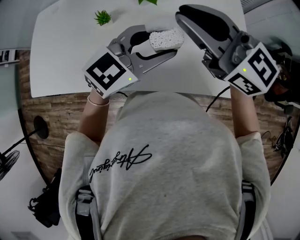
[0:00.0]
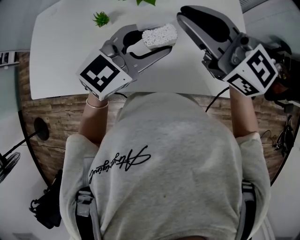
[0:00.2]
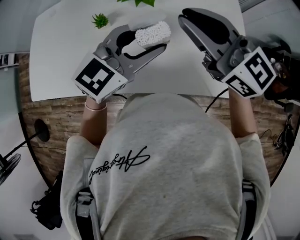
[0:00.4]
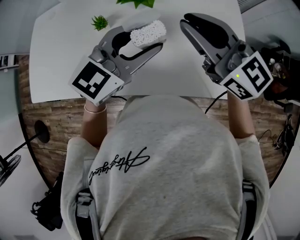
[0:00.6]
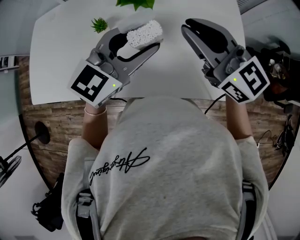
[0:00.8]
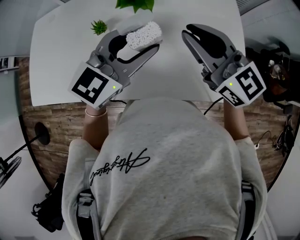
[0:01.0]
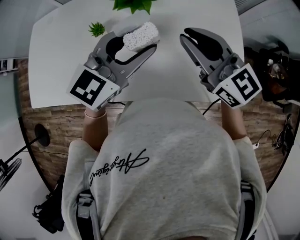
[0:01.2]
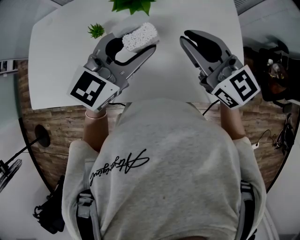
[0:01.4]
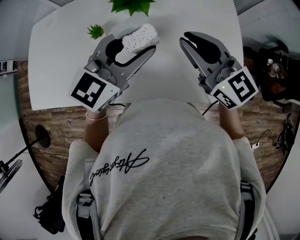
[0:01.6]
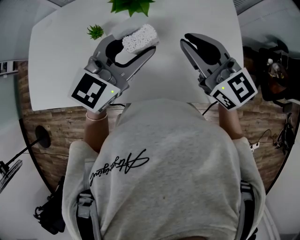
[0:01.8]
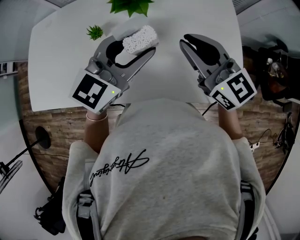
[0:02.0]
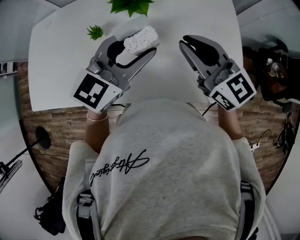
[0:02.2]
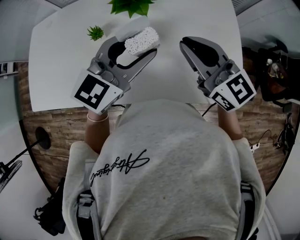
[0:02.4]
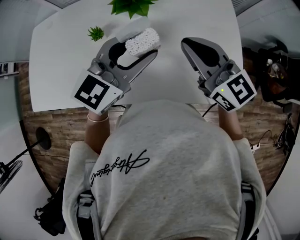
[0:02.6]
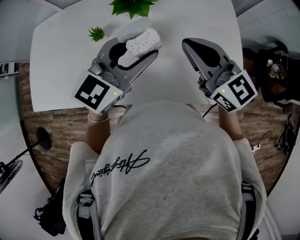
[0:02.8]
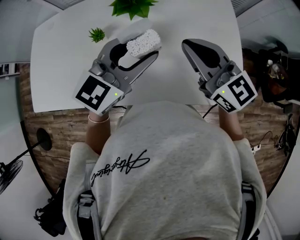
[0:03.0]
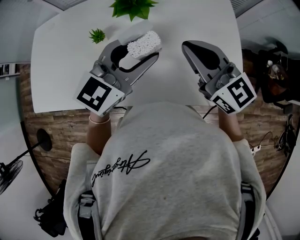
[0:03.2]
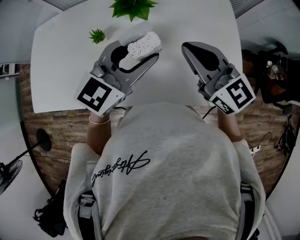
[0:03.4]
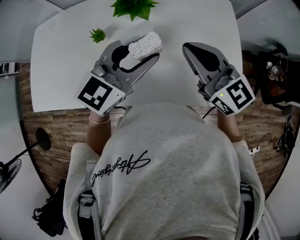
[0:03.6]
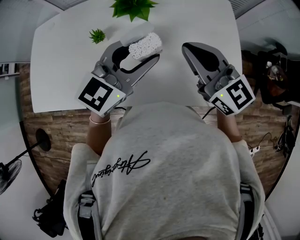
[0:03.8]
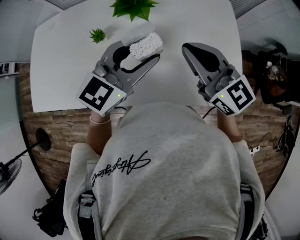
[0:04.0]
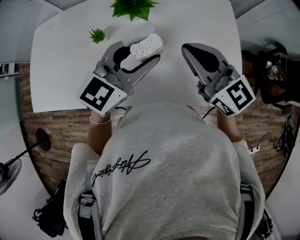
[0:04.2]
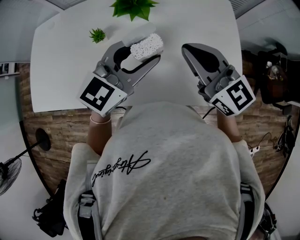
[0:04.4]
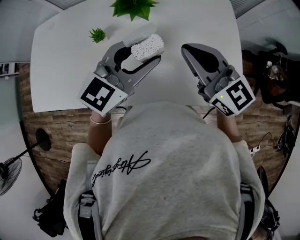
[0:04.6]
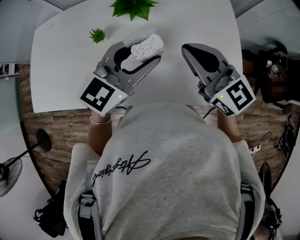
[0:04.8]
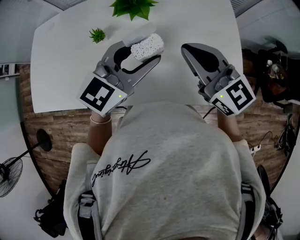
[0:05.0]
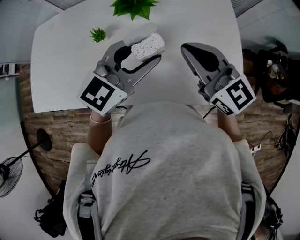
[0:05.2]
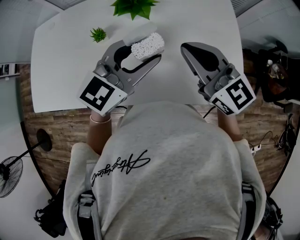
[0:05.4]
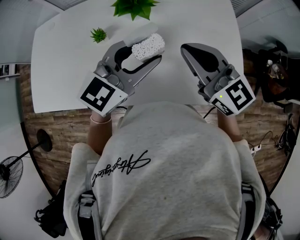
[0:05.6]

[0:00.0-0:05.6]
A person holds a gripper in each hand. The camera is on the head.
0:00.0 to 0:01.4: The left gripper ends up approximately 5 cm from where it was. Meanwhile the right gripper heads downward, covering some 5 cm.
0:01.4 to 0:04.2: The two grippers keep their place.
0:04.2 to 0:05.6: The two grippers keep their place.

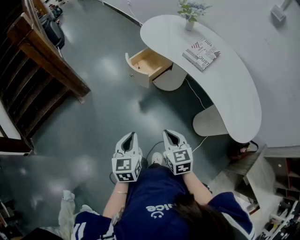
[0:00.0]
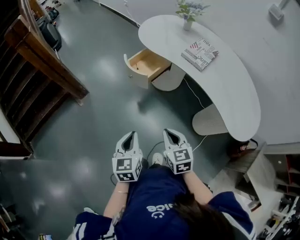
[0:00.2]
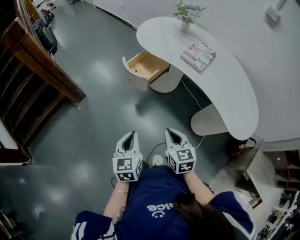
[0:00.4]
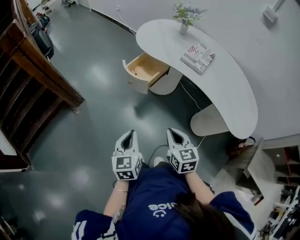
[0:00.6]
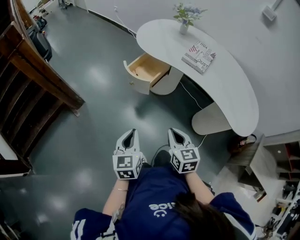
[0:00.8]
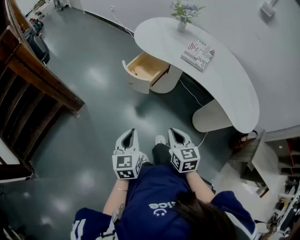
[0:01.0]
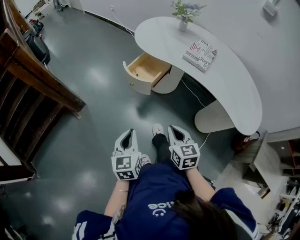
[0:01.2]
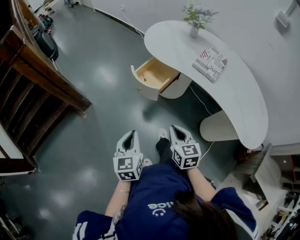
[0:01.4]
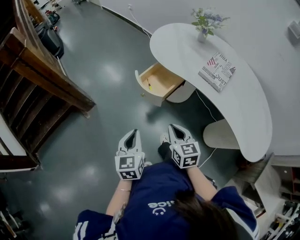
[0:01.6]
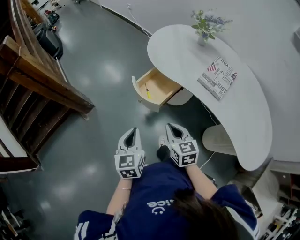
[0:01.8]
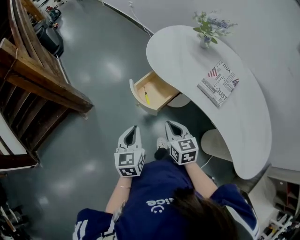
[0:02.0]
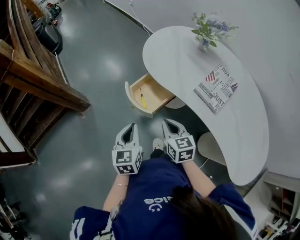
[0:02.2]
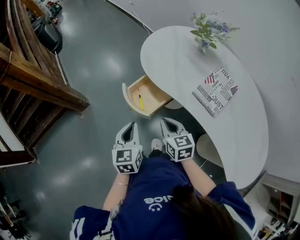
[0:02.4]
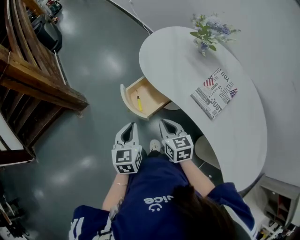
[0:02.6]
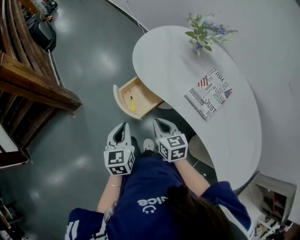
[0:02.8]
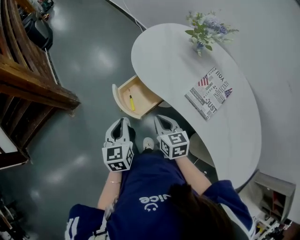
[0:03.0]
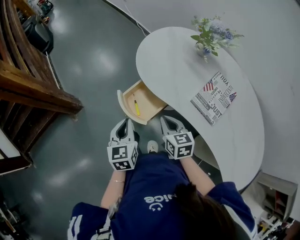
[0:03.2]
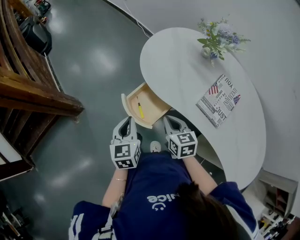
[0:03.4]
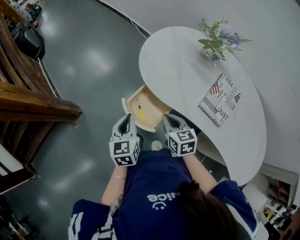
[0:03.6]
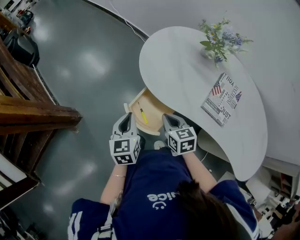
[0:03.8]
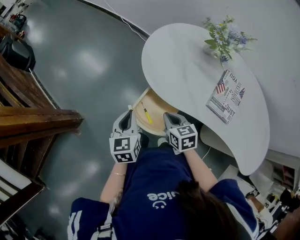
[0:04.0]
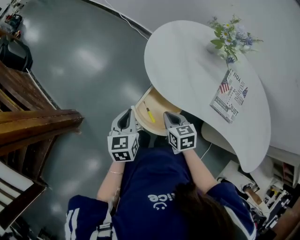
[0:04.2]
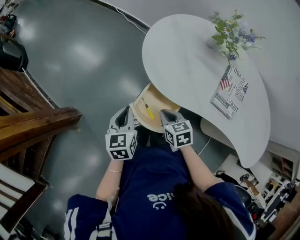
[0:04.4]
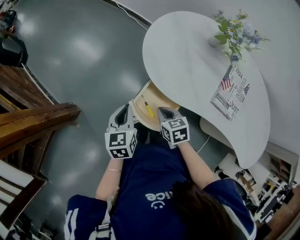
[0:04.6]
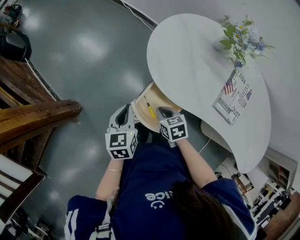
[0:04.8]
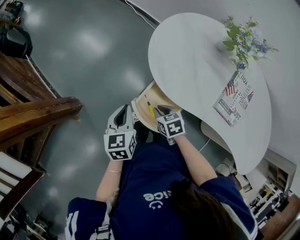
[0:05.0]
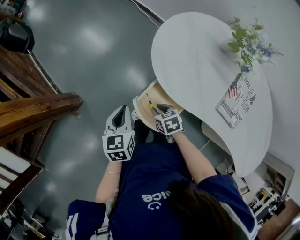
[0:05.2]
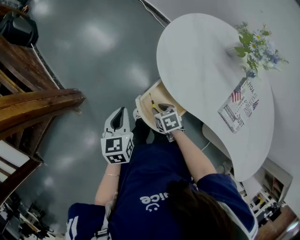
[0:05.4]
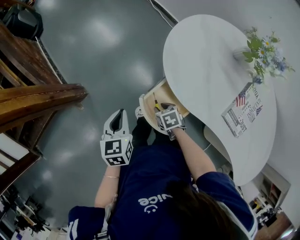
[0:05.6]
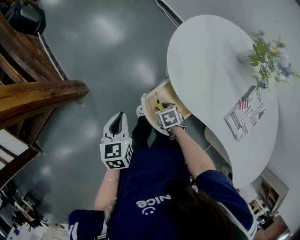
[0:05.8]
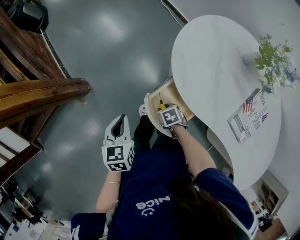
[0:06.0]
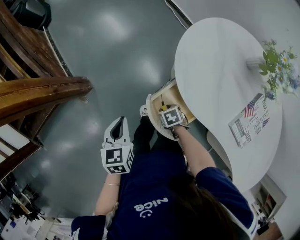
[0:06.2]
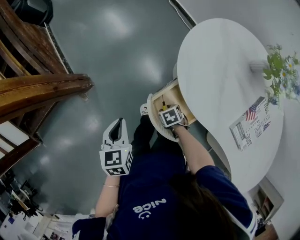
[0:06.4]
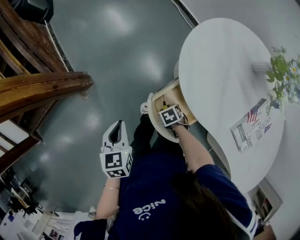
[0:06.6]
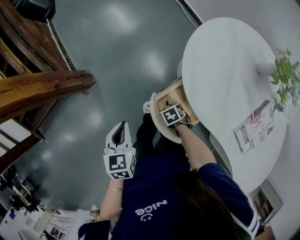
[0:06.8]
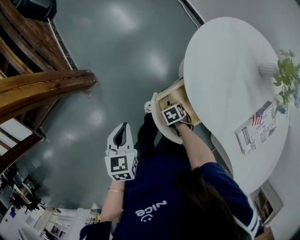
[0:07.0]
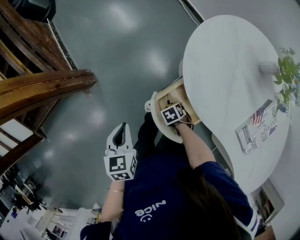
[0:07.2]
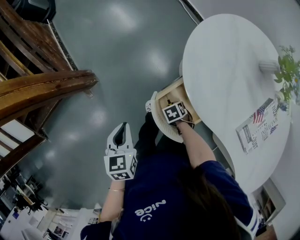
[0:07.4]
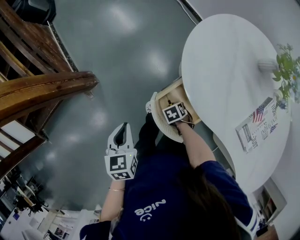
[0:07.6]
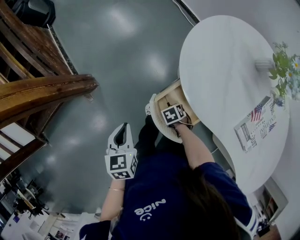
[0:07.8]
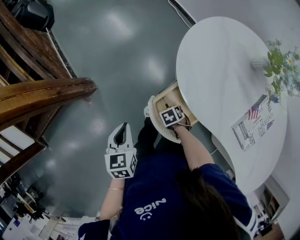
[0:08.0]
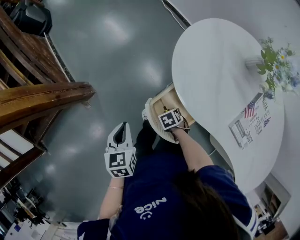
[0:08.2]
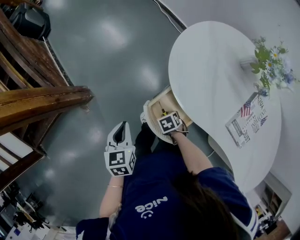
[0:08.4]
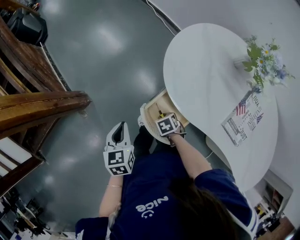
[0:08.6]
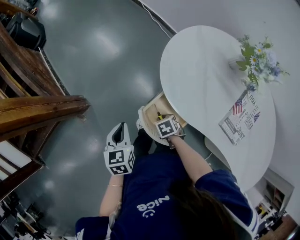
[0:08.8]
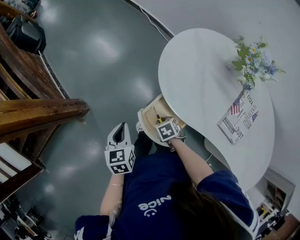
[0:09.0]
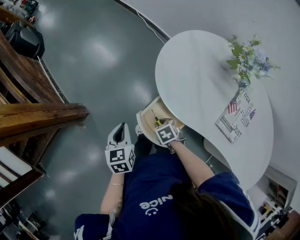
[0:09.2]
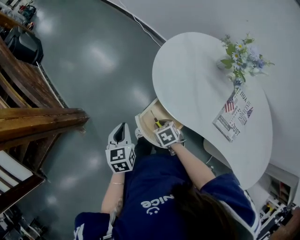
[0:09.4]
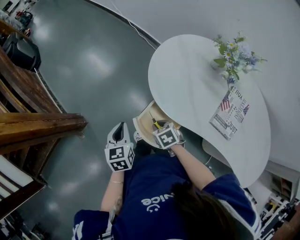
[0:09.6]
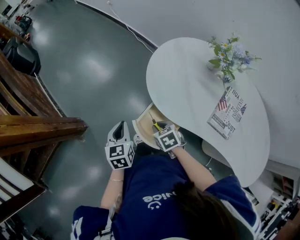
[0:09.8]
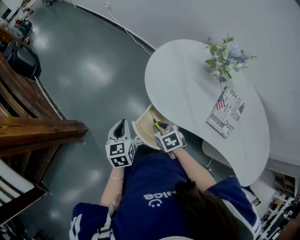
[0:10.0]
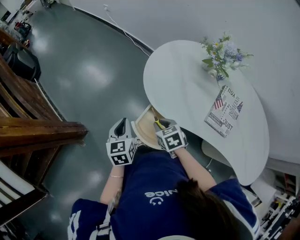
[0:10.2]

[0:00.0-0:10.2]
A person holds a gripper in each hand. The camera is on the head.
0:00.0 to 0:01.4: Both grippers travel together forward and to the left, roughly 15 cm.
0:01.4 to 0:03.0: The right gripper shifts approximately 25 cm forward, while the left gripper goes approximately 25 cm forward and to the right.
0:03.0 to 0:04.4: The left gripper is displaced forward and to the left by roughly 20 cm, and rotates some 20 degrees. Meanwhile the right gripper moves forward, to the left and downward, some 20 cm, and turns by about 20 degrees.
0:04.4 to 0:05.8: The right gripper goes some 15 cm downward, changes its angle by roughly 30 degrees, and opens, while the left gripper changes place by approximately 5 cm.
0:05.8 to 0:07.2: The right gripper is displaced downward by approximately 10 cm.
0:07.2 to 0:08.8: The right gripper shifts roughly 10 cm upward.
0:08.8 to 0:10.2: The right gripper shifts approximately 15 cm upward, and rotates about 20 degrees. Meanwhile the left gripper heads to the right, covering roughly 5 cm.

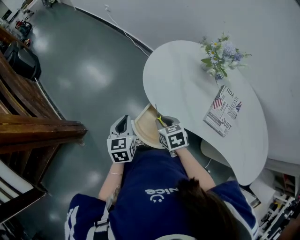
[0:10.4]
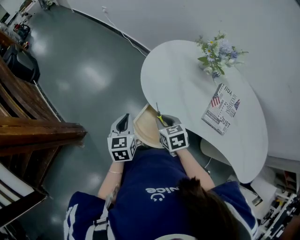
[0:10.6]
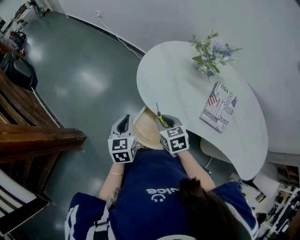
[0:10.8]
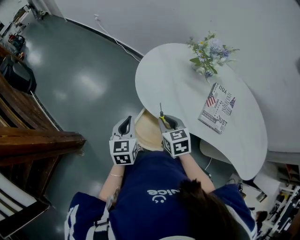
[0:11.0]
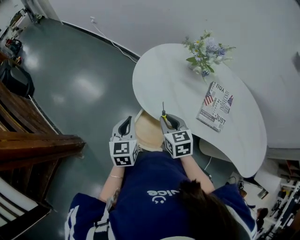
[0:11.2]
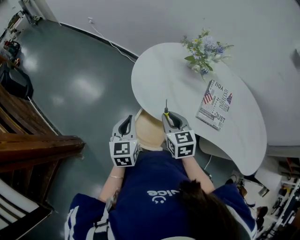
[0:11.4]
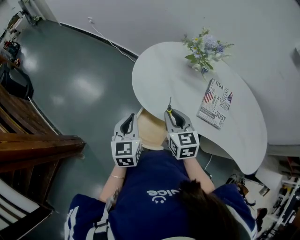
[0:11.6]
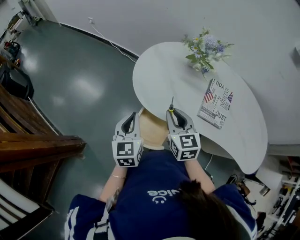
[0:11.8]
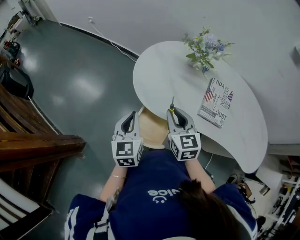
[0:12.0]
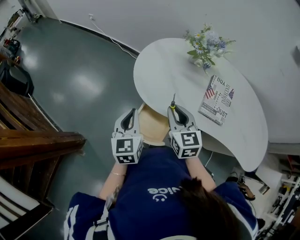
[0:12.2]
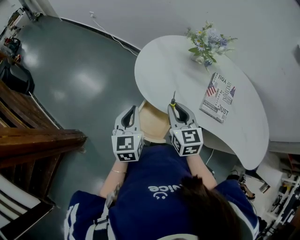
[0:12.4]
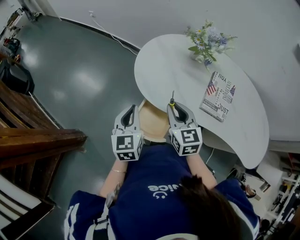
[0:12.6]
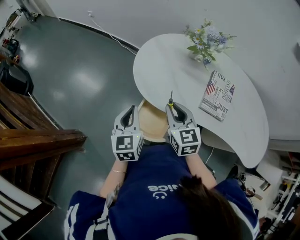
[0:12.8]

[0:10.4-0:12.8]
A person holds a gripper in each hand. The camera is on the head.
0:10.4 to 0:11.6: The right gripper moves upward and to the right, some 10 cm, and changes its angle by approximately 30 degrees. The left gripper goes some 10 cm to the right and upward.
0:11.6 to 0:12.8: There are only small adjustments of the grippers.

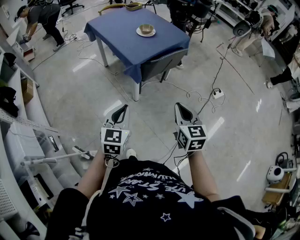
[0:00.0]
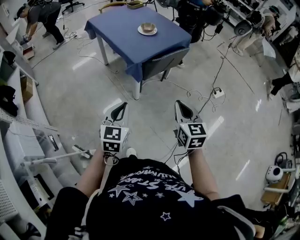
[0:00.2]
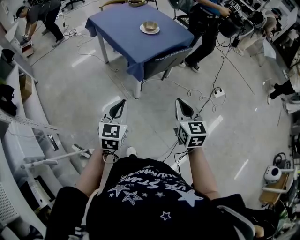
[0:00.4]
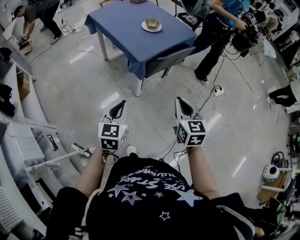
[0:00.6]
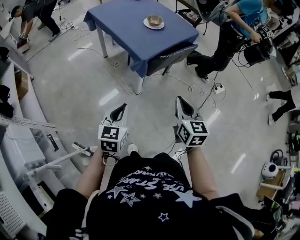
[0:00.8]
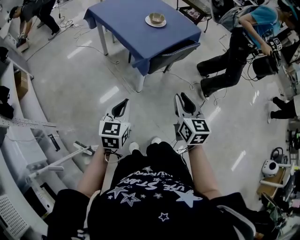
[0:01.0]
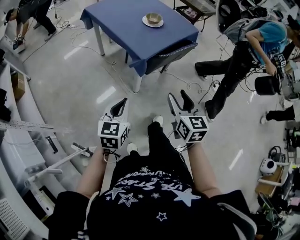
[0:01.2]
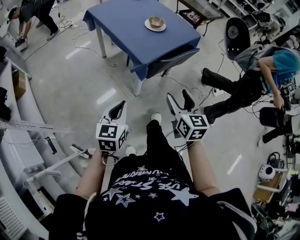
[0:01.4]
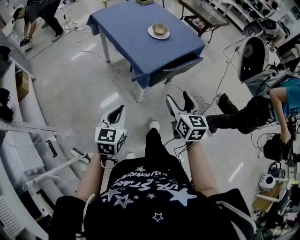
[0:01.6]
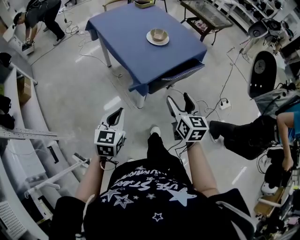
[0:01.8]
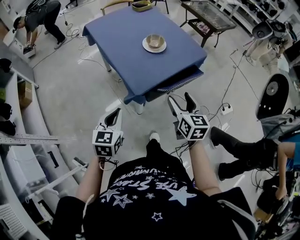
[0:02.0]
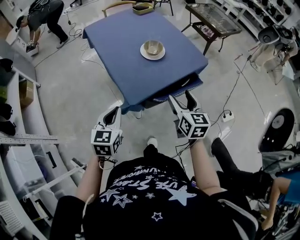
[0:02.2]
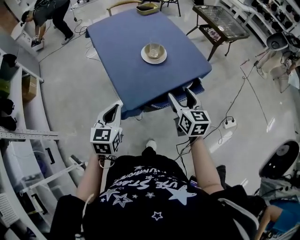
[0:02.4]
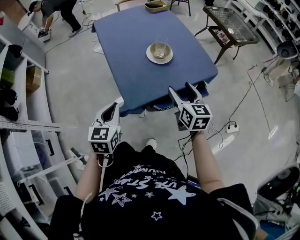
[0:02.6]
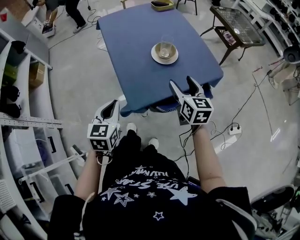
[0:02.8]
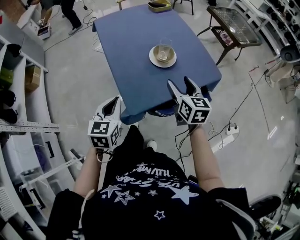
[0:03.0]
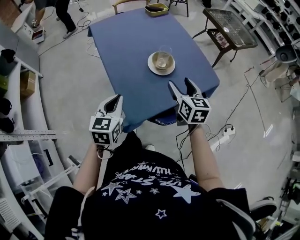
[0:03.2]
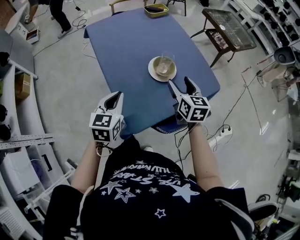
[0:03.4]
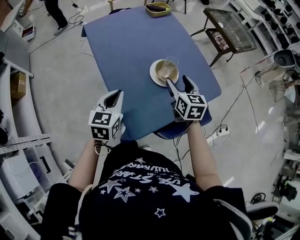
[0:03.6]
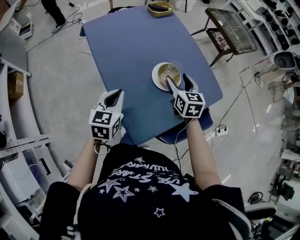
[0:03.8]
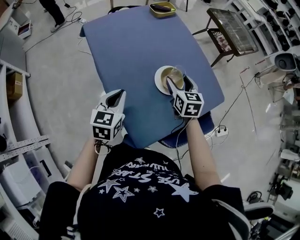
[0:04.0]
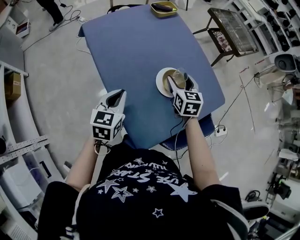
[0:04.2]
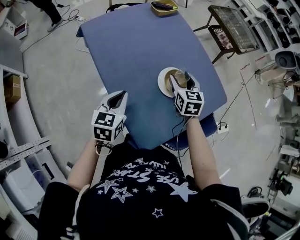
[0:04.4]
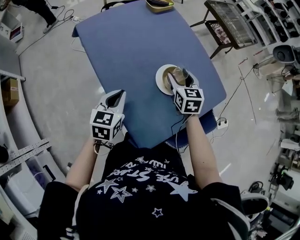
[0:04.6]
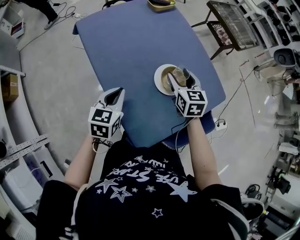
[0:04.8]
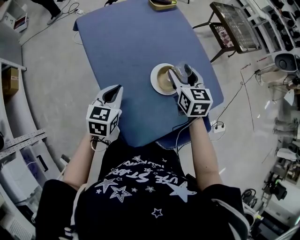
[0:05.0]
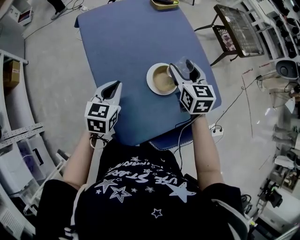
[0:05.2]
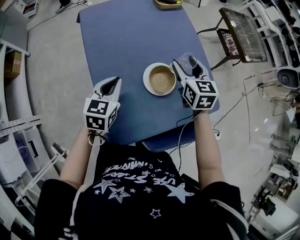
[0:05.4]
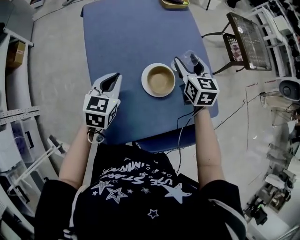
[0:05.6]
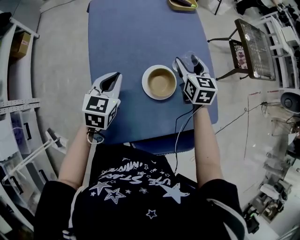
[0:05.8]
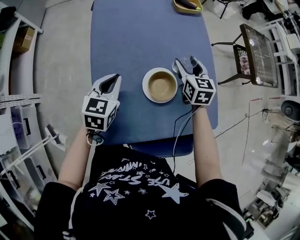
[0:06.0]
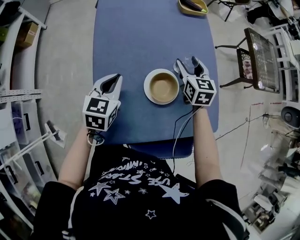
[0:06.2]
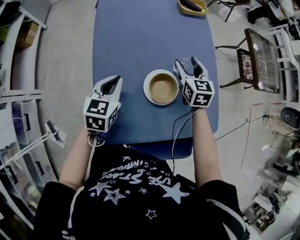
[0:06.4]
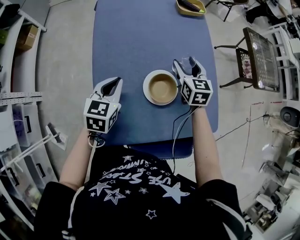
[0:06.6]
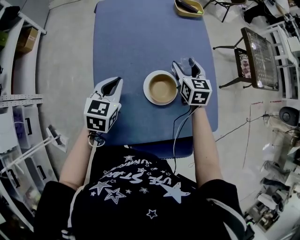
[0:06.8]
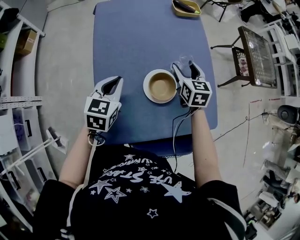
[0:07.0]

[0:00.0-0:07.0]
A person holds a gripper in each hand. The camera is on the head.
0:00.0 to 0:01.4: The two grippers go roughly 15 cm forward and to the left. The right gripper opens.
0:01.4 to 0:02.8: Both grippers move forward, approximately 30 cm. The left gripper turns by roughly 20 degrees.
0:02.8 to 0:04.2: The grippers both shift forward by about 25 cm.
0:04.2 to 0:05.6: The right gripper moves forward, roughly 10 cm. Meanwhile the left gripper shifts about 5 cm to the right.
0:05.6 to 0:07.0: The right gripper moves about 5 cm.
